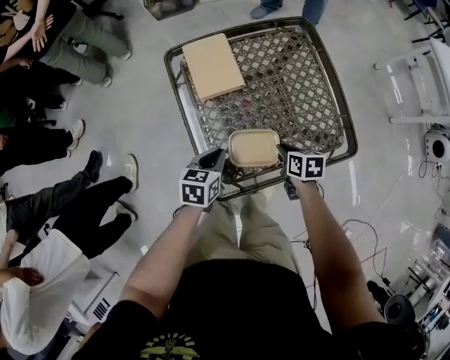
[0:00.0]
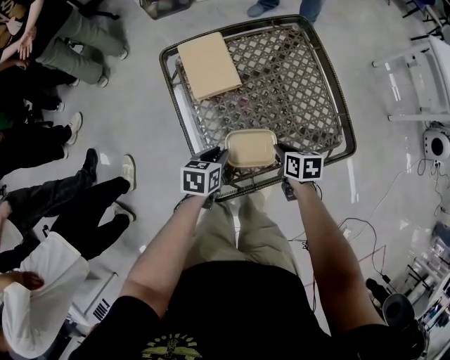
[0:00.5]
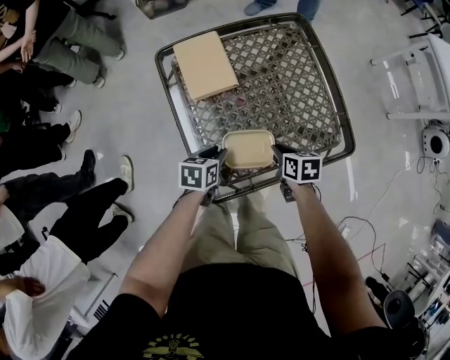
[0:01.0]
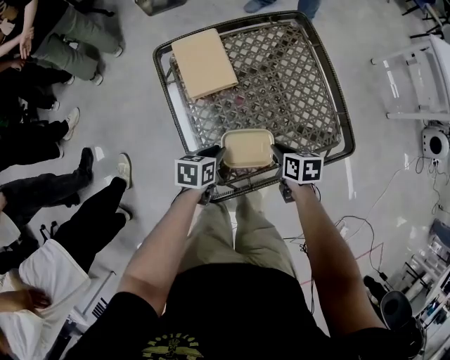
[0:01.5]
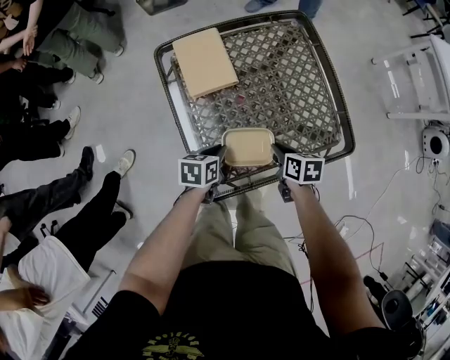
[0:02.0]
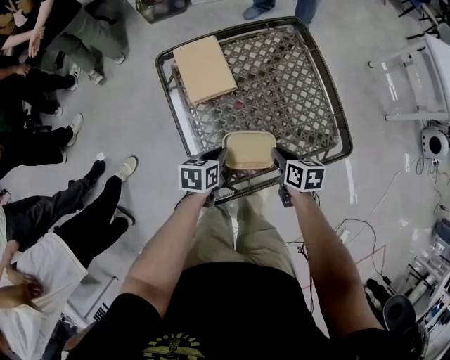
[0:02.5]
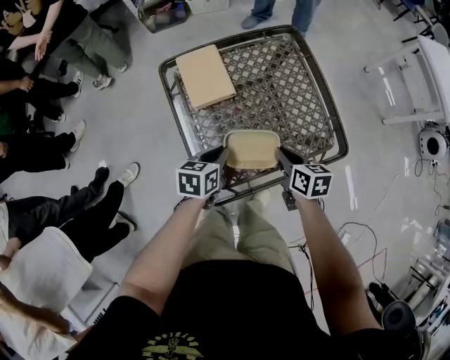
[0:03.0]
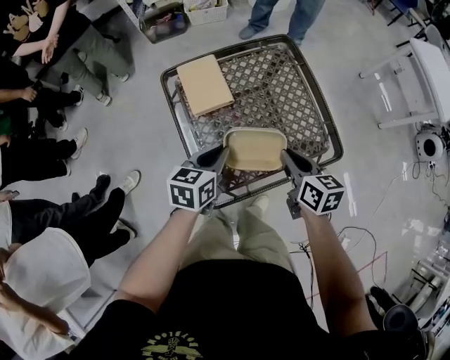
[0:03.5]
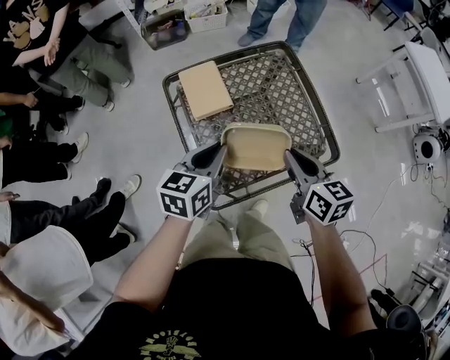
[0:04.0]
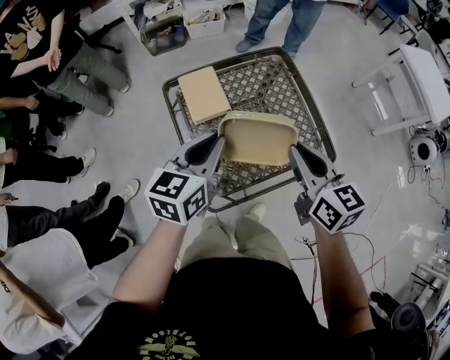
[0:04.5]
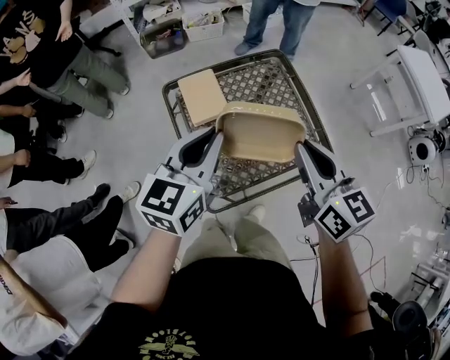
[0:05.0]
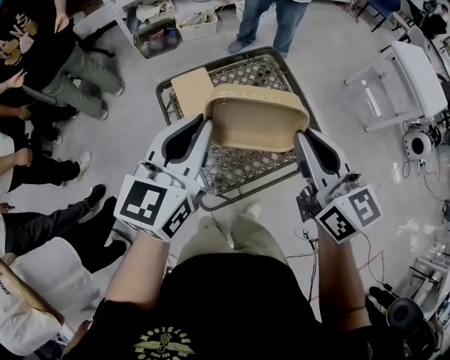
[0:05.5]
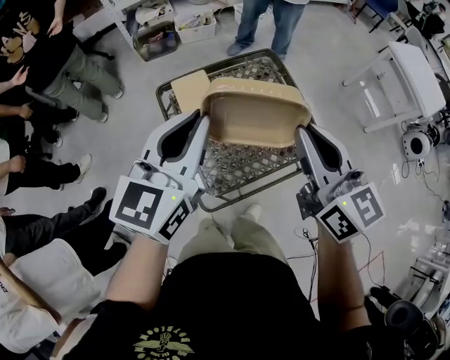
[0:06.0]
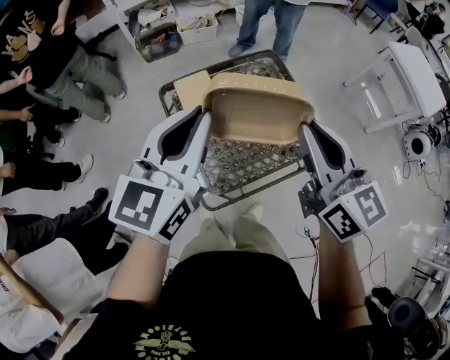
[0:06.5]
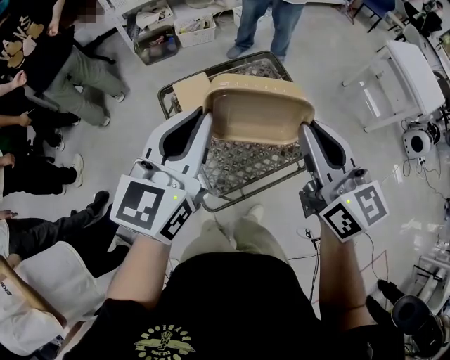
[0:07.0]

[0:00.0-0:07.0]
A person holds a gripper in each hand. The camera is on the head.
0.0 to 2.0 s: The left gripper shifts some 5 cm downward.
2.0 to 3.5 s: The two grippers go approximately 20 cm upward. The left gripper rotates approximately 20 degrees; the right gripper swivels approximately 20 degrees.
3.5 to 5.0 s: The two grippers go about 20 cm upward. The left gripper turns by approximately 30 degrees; the right gripper turns by about 20 degrees.
5.0 to 7.0 s: Both grippers move upward, approximately 10 cm.

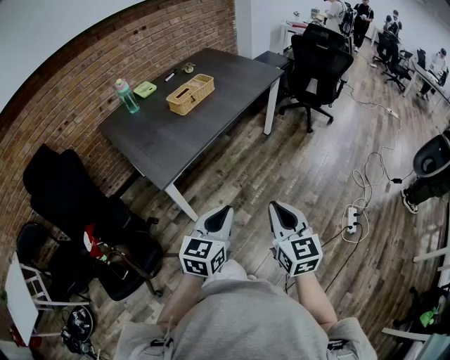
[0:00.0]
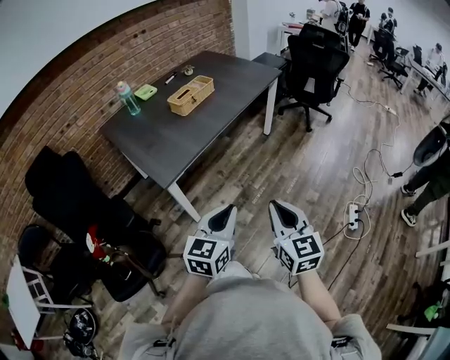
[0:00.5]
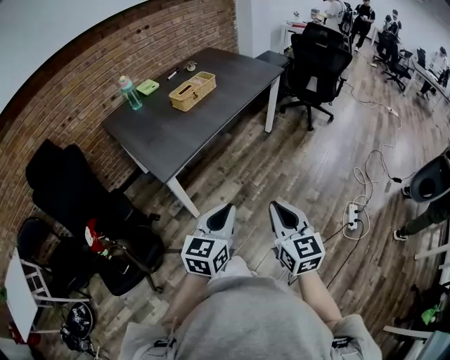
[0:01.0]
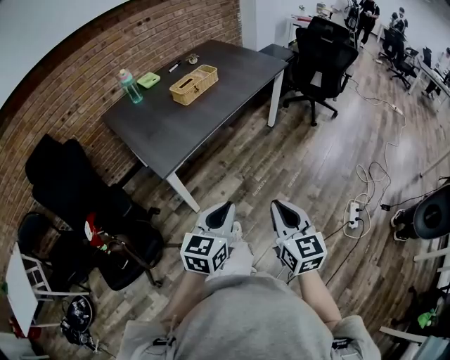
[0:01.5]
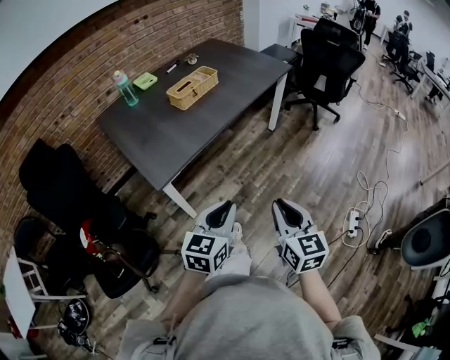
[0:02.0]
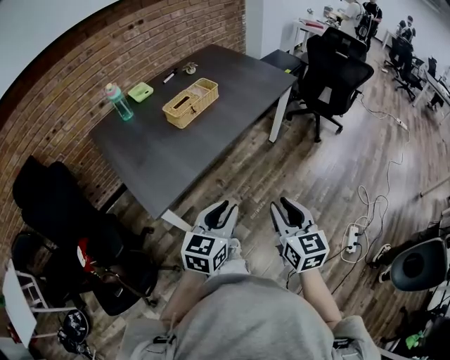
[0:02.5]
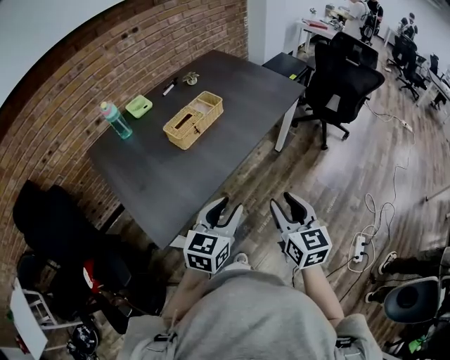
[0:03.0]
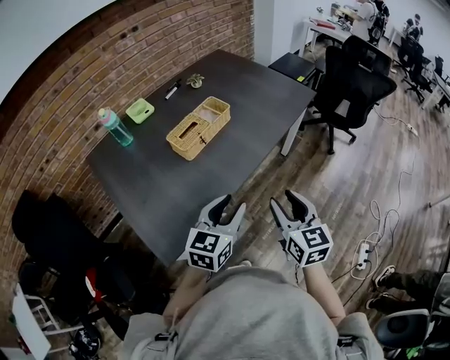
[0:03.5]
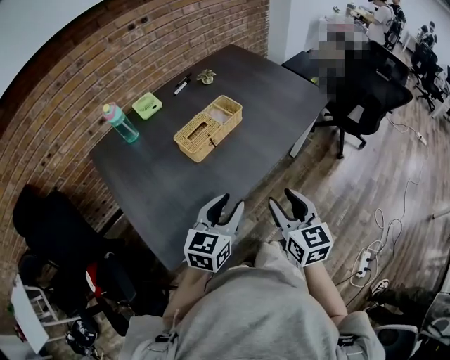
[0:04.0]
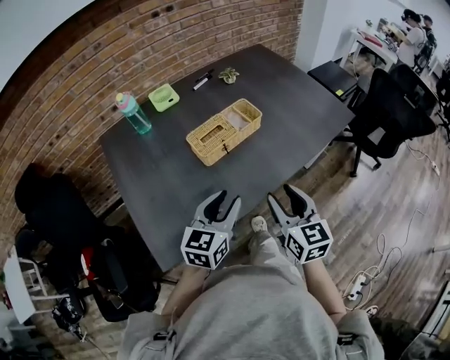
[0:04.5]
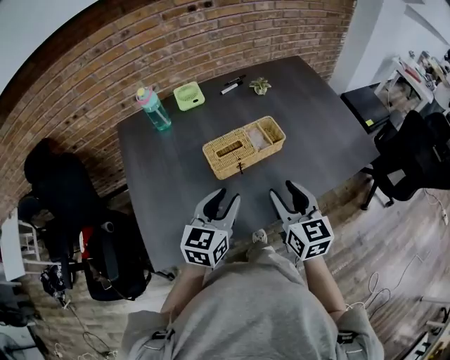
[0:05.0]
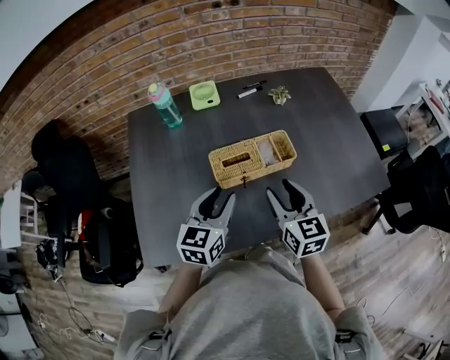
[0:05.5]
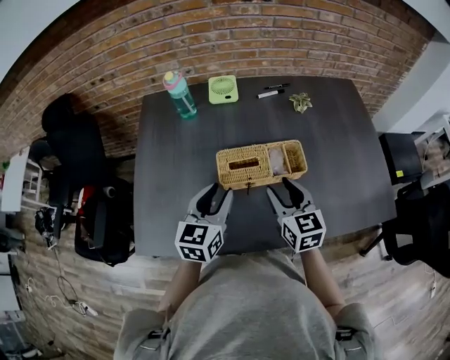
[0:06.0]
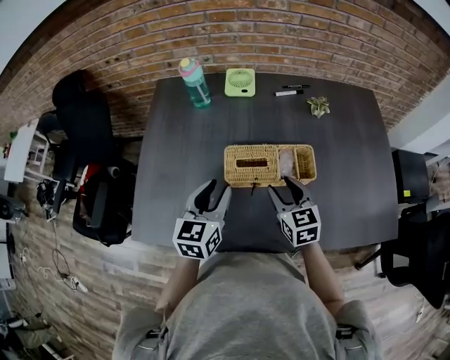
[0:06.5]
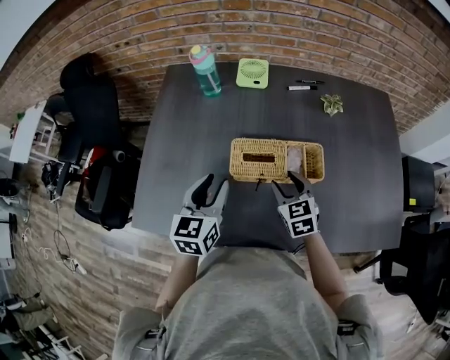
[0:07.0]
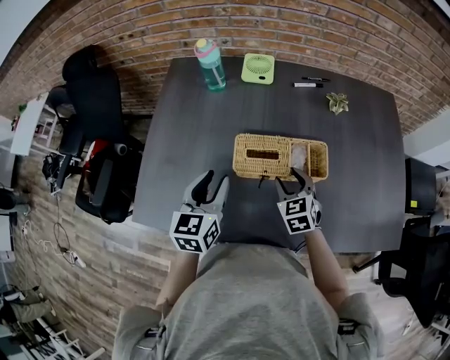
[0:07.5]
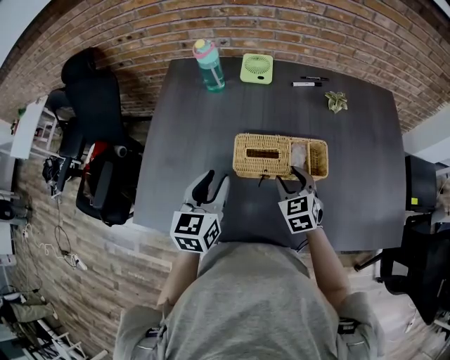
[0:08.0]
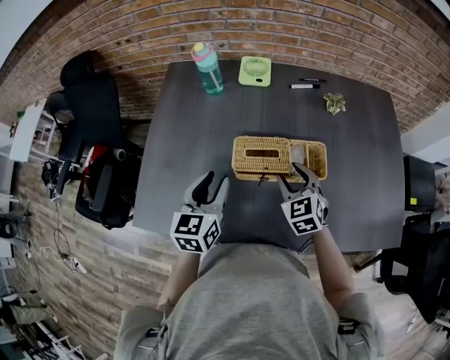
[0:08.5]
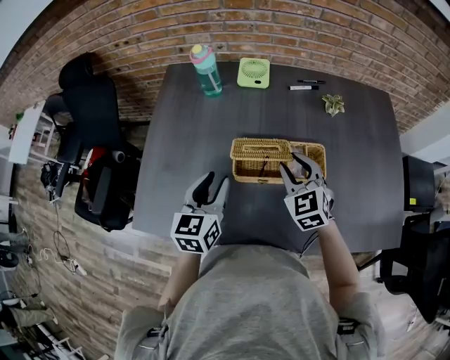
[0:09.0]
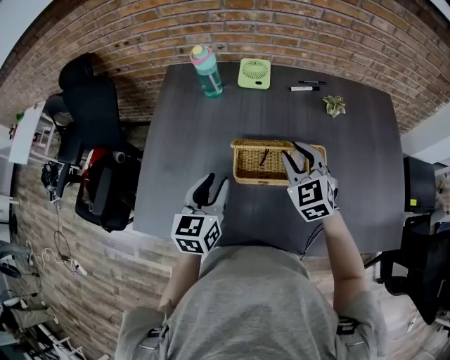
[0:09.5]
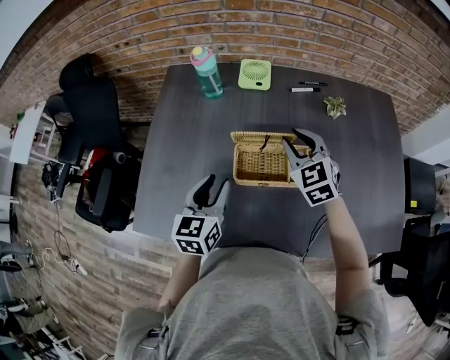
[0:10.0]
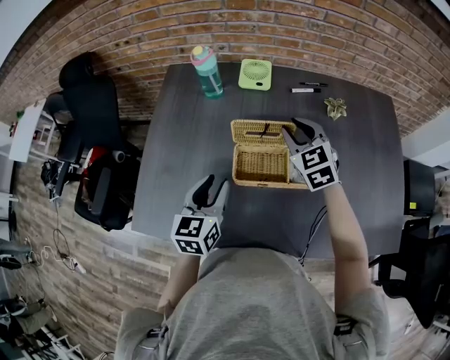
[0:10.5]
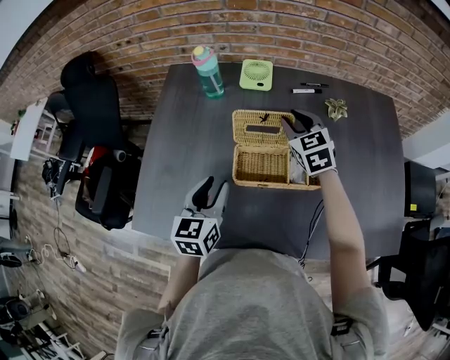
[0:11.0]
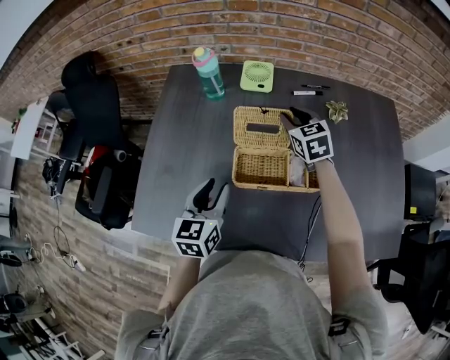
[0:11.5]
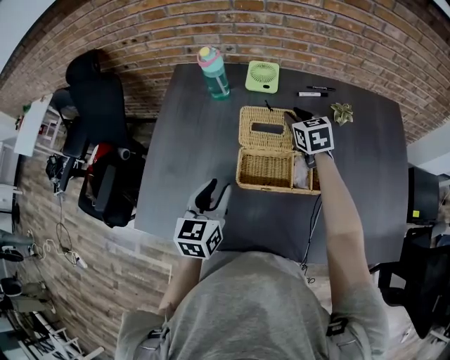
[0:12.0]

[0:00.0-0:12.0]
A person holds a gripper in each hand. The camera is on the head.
0.0 to 2.0 s: The two grippers go approximately 5 cm forward.
2.0 to 4.0 s: Both grippers travel together forward, some 40 cm. The left gripper opens up. The right gripper opens its fingers.
4.0 to 6.0 s: The right gripper changes place by roughly 35 cm, and turns by about 40 degrees; the left gripper shifts by roughly 25 cm, and turns by roughly 50 degrees.
6.0 to 8.0 s: The left gripper ends up some 5 cm from where it was. Meanwhile the right gripper shifts approximately 10 cm downward and forward, and changes its angle by roughly 30 degrees.
8.0 to 10.0 s: The right gripper heads upward and forward, covering roughly 15 cm.
10.0 to 12.0 s: The right gripper goes some 15 cm forward and downward, and swivels approximately 20 degrees.

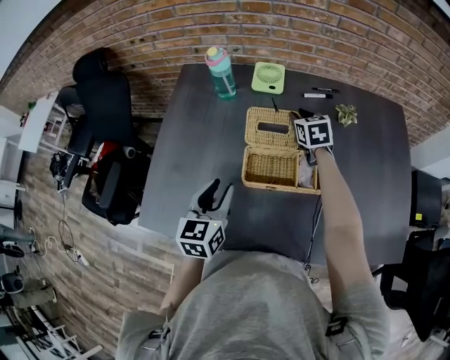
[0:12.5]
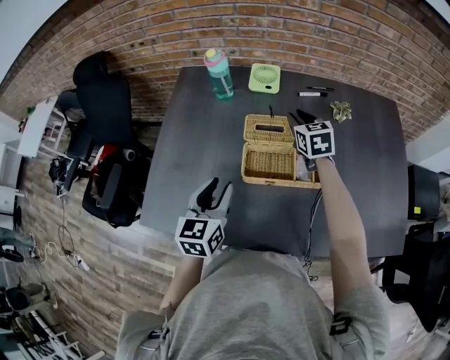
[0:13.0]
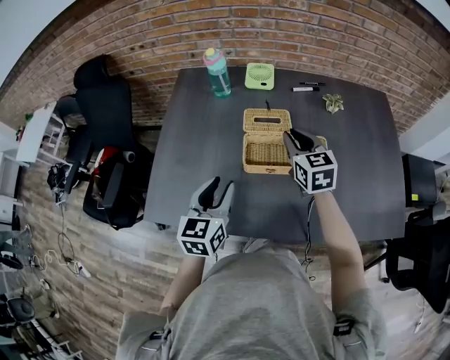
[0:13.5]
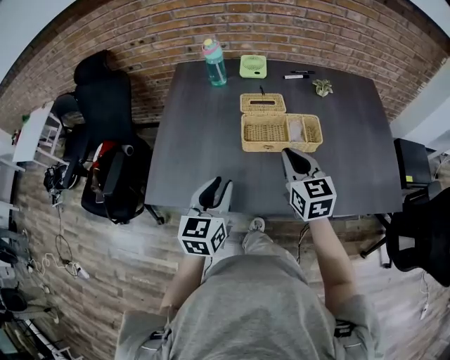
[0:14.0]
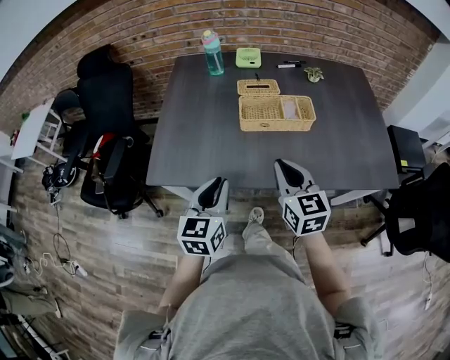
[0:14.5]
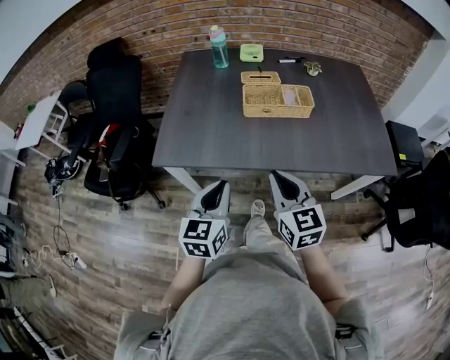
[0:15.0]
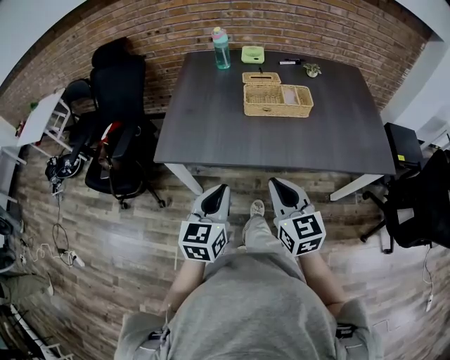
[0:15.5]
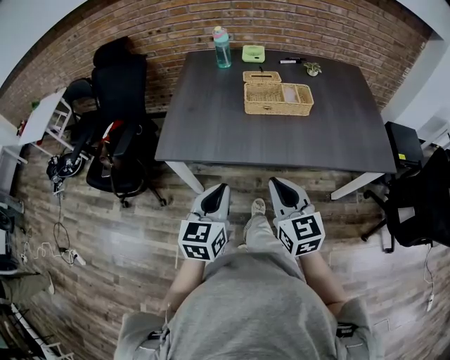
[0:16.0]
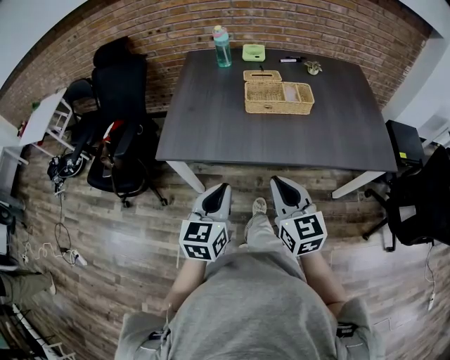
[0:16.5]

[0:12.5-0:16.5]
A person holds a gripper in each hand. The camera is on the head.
12.5 to 14.5 s: The right gripper moves backward, some 50 cm, swivels some 20 degrees, and closes; the left gripper is displaced backward by about 25 cm, and closes its fingers.
14.5 to 16.5 s: The grippers both shift backward by approximately 15 cm.

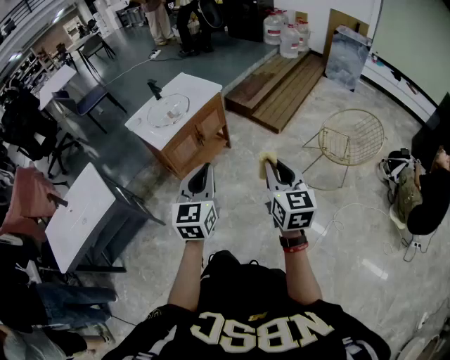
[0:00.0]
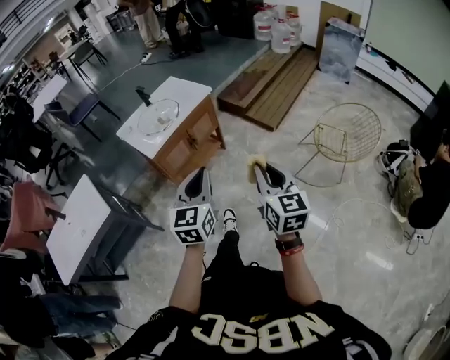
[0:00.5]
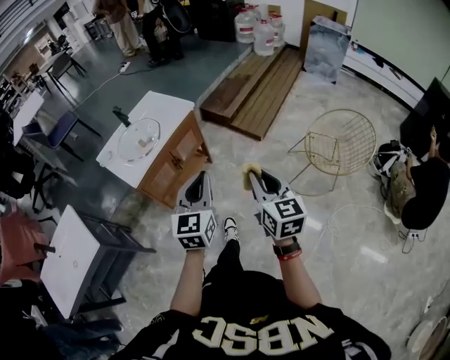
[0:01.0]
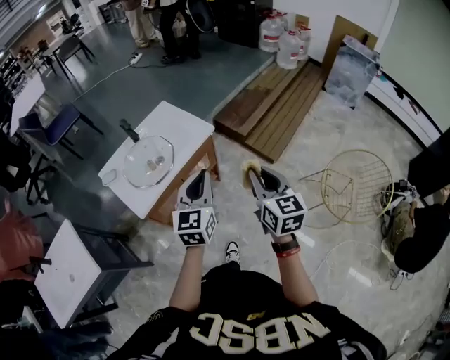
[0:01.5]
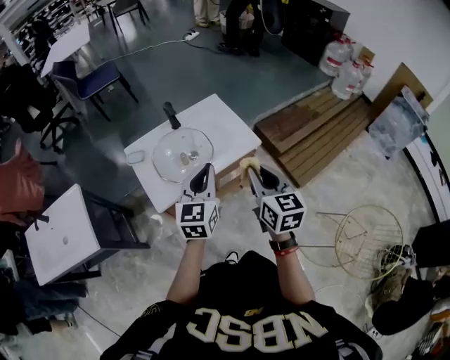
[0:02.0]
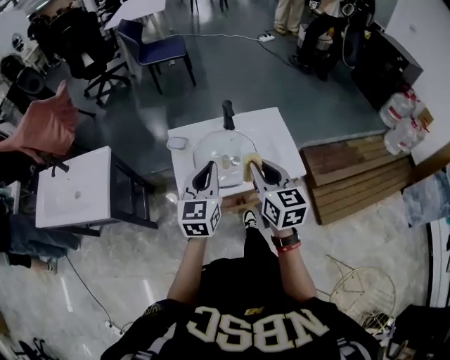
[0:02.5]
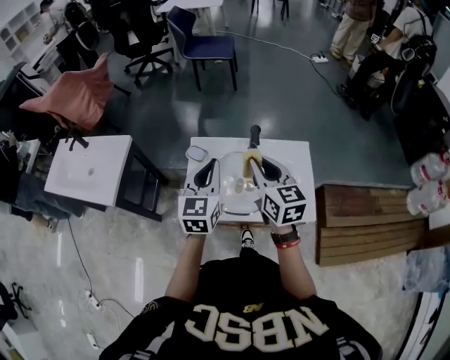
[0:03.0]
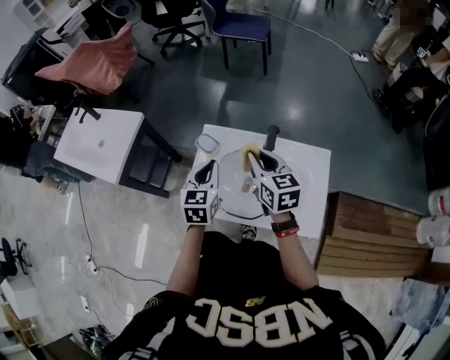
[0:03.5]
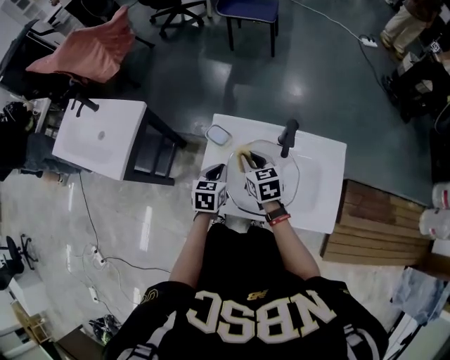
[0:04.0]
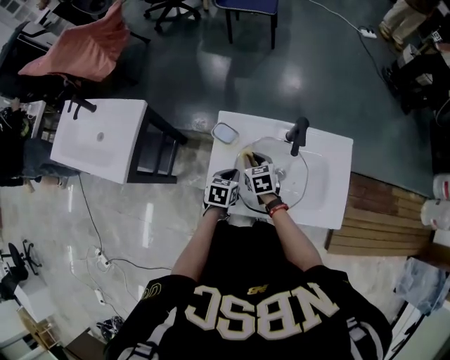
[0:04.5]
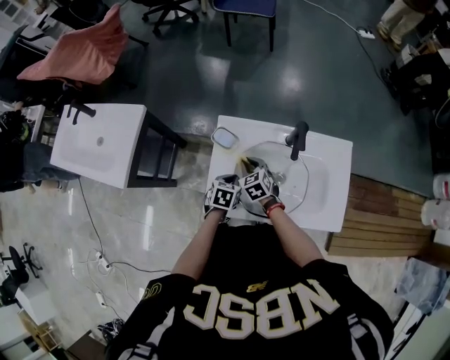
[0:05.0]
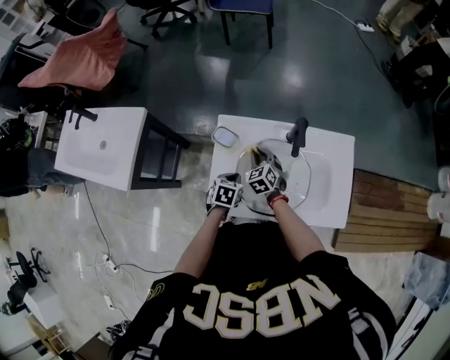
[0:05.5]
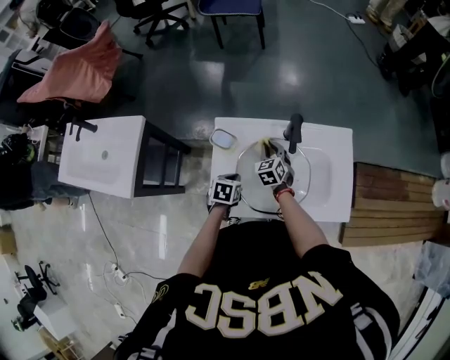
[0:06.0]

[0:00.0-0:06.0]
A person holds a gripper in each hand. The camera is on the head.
0.0 to 2.0 s: The pair of grippers is taken forward, about 50 cm. The right gripper changes its angle by approximately 30 degrees.
2.0 to 4.0 s: The left gripper changes place by about 40 cm, and angles its fingers downward, by about 30 degrees, while the right gripper moves about 50 cm, and rotates about 60 degrees.
4.0 to 6.0 s: Both grippers move downward, some 10 cm. The left gripper turns by some 20 degrees. Meanwhile the right gripper rotates some 30 degrees.
